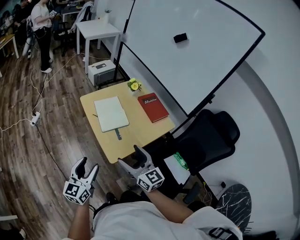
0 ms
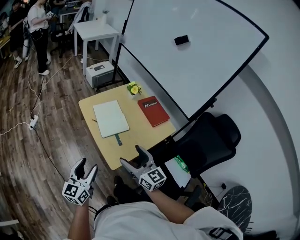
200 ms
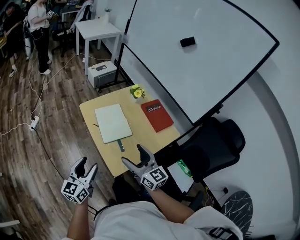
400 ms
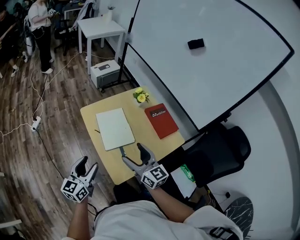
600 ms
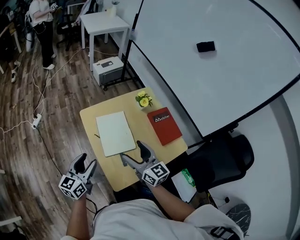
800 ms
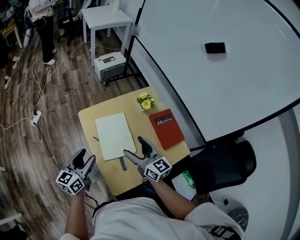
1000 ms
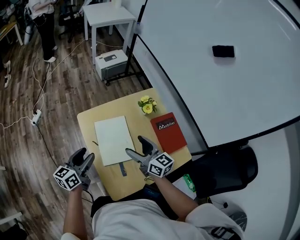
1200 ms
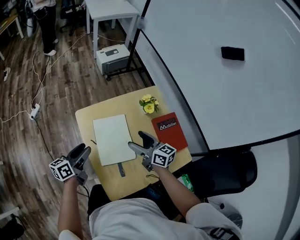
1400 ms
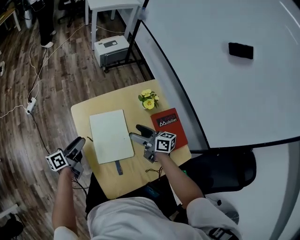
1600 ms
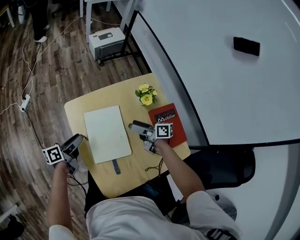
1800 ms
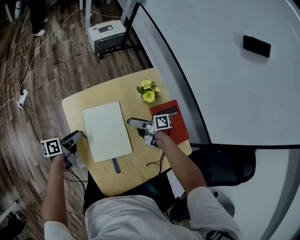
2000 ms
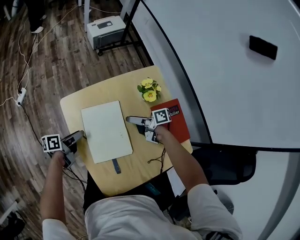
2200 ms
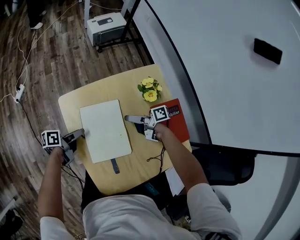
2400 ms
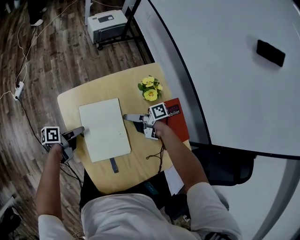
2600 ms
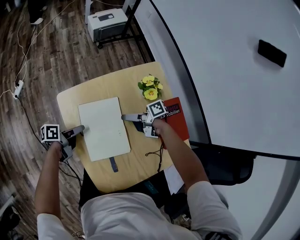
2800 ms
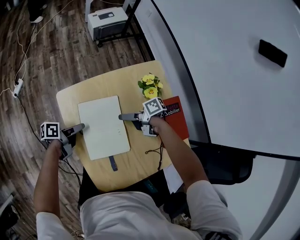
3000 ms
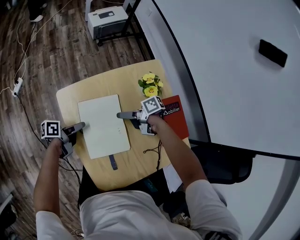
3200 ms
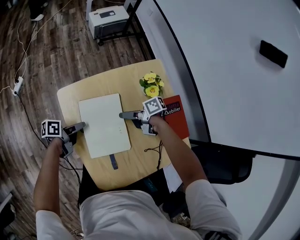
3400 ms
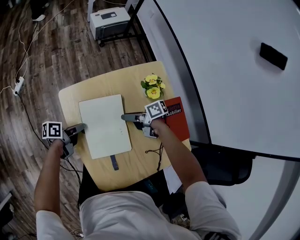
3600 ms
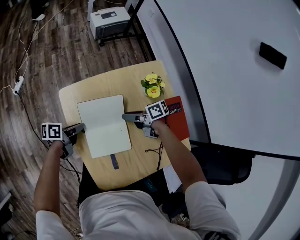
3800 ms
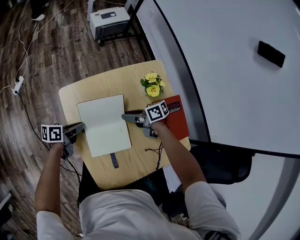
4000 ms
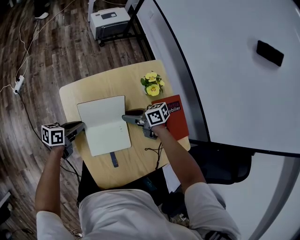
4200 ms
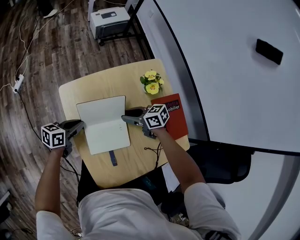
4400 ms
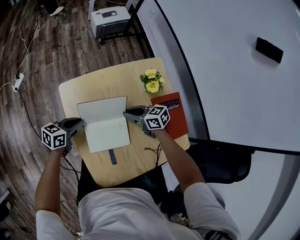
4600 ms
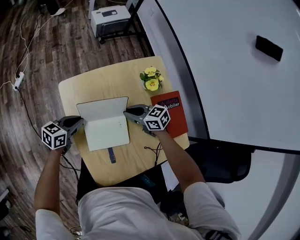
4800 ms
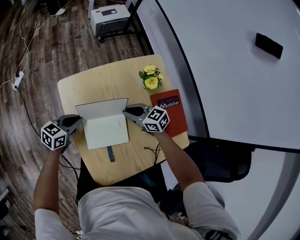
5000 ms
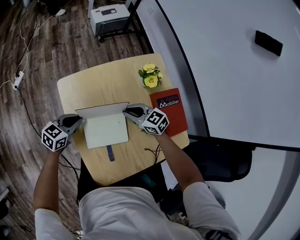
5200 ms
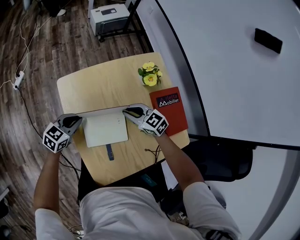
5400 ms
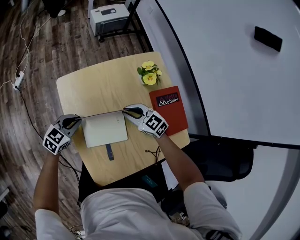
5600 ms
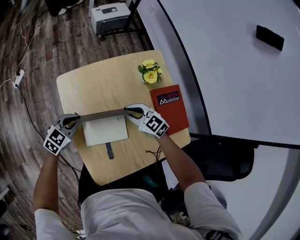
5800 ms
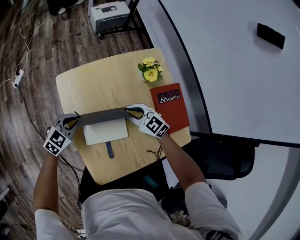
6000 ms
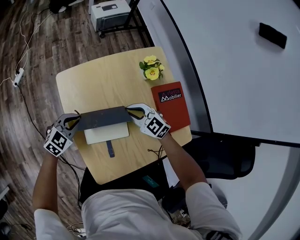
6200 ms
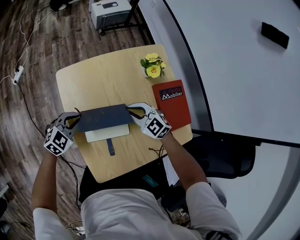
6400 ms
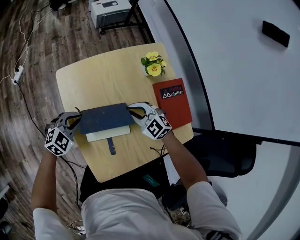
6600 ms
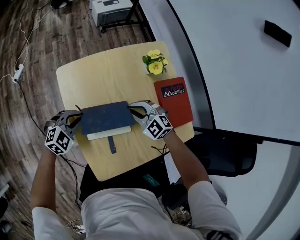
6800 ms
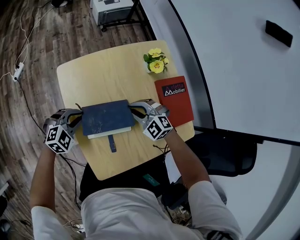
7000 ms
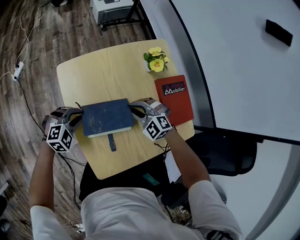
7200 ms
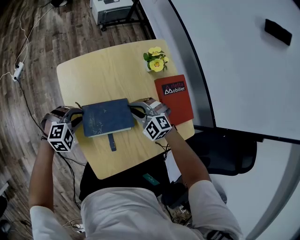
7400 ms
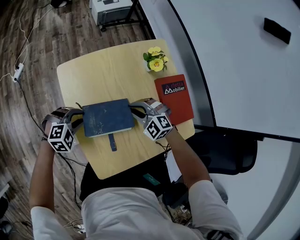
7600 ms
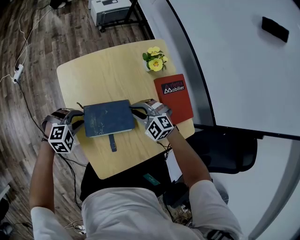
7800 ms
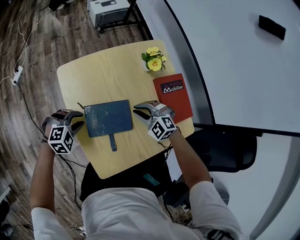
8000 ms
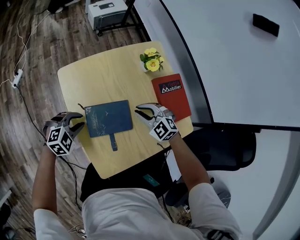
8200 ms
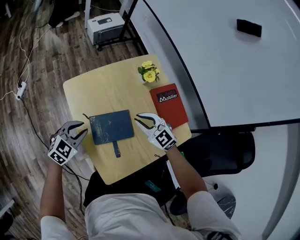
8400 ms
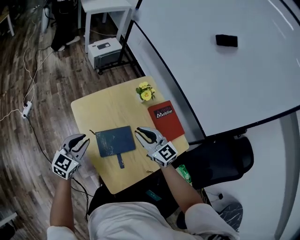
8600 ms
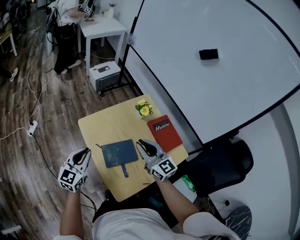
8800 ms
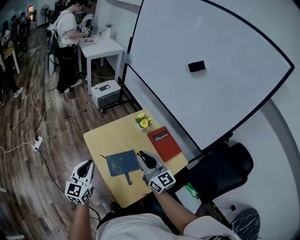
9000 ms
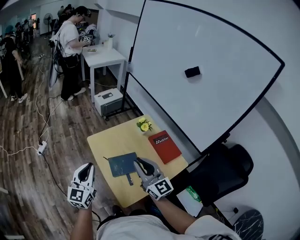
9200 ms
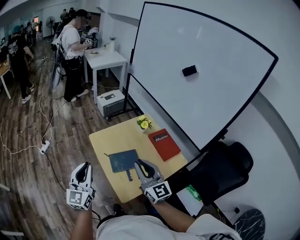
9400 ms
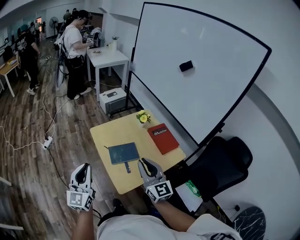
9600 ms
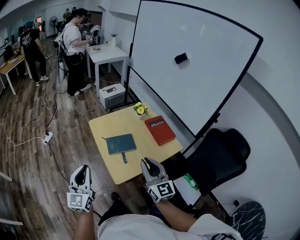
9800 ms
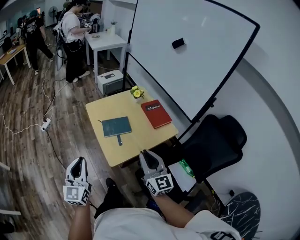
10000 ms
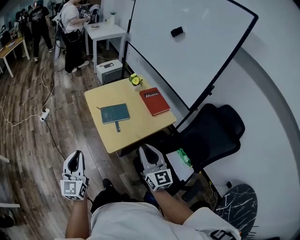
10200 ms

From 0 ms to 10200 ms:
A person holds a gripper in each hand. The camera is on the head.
From 0 ms to 1400 ms: Both grippers travel together forward, some 40 cm. The left gripper swivels about 40 degrees. Meanwhile the right gripper changes its angle by some 30 degrees.
From 1400 ms to 3000 ms: Both grippers move downward, roughly 15 cm. The left gripper swivels approximately 40 degrees, while the right gripper rotates about 60 degrees.
From 3000 ms to 4400 ms: The left gripper changes its angle by approximately 40 degrees, and closes up. The right gripper swivels approximately 40 degrees, and closes.
From 4400 ms to 5800 ms: The left gripper twists approximately 40 degrees clockwise, seen from behind; the right gripper swivels some 40 degrees.
From 5800 ms to 7200 ms: The right gripper turns by about 30 degrees, while the left gripper swivels approximately 40 degrees.
From 7200 ms to 8800 ms: The grippers both shift upward by approximately 25 cm. The right gripper tips its fingers upward by approximately 40 degrees; the left gripper tips its fingers upward by approximately 40 degrees.
From 8800 ms to 10200 ms: The grippers both shift backward by some 40 cm. The left gripper swivels some 20 degrees.

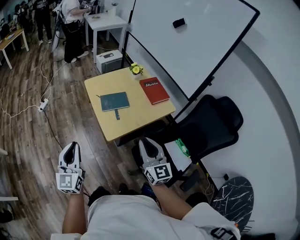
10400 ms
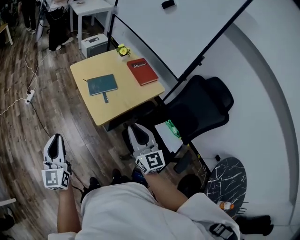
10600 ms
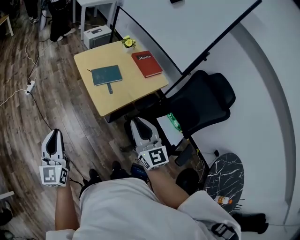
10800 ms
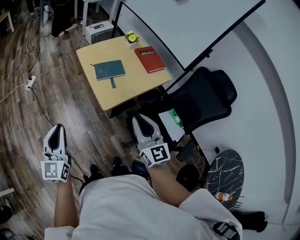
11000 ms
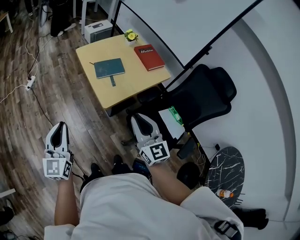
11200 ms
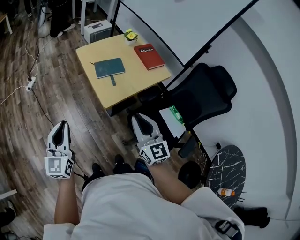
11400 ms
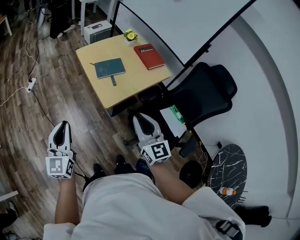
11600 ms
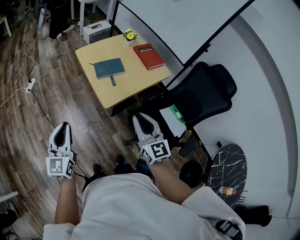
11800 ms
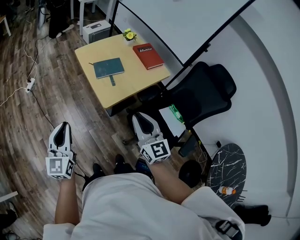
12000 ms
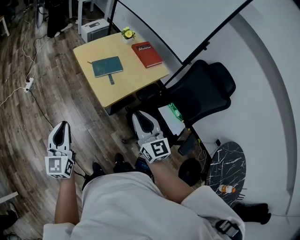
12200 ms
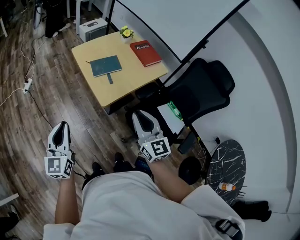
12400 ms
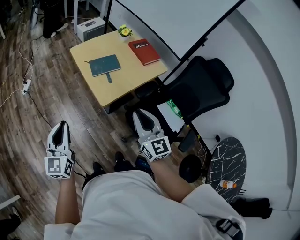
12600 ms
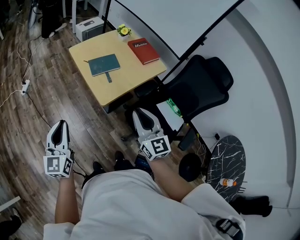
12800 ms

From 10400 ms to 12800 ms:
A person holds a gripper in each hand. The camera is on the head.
From 10400 ms to 11600 ms: The two grippers go approximately 5 cm to the left.
From 11600 ms to 12800 ms: The grippers make only small movements.

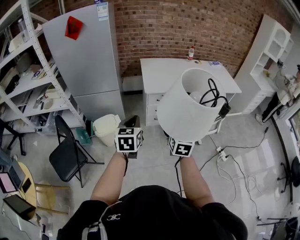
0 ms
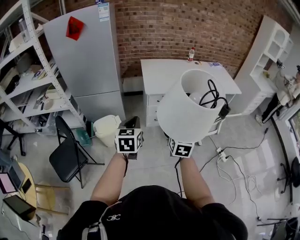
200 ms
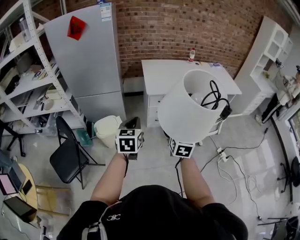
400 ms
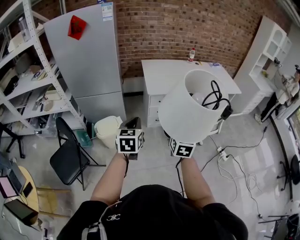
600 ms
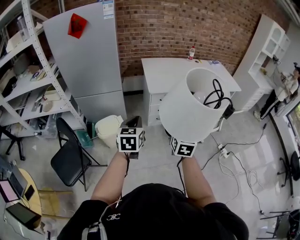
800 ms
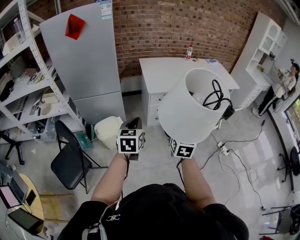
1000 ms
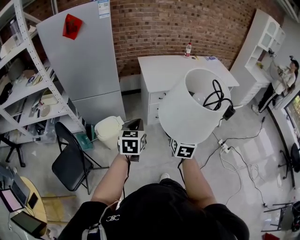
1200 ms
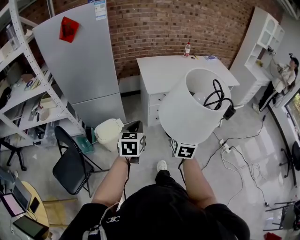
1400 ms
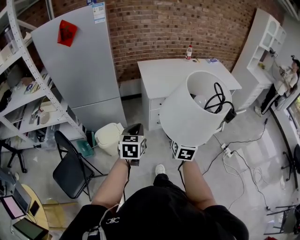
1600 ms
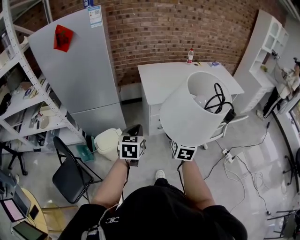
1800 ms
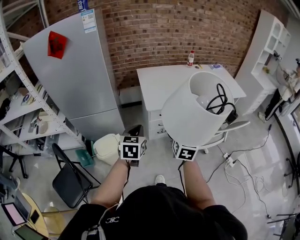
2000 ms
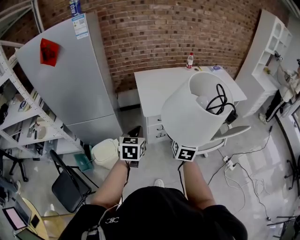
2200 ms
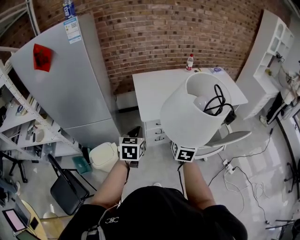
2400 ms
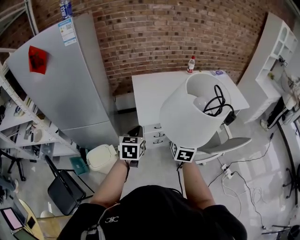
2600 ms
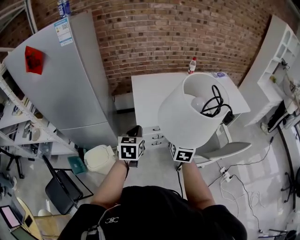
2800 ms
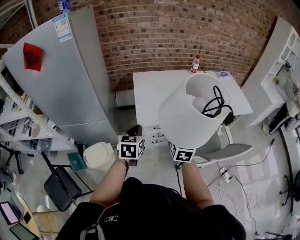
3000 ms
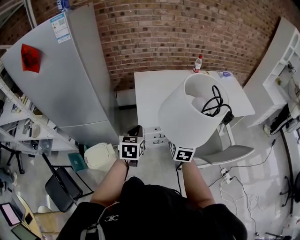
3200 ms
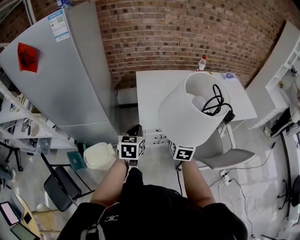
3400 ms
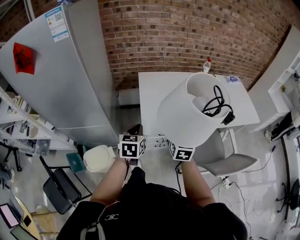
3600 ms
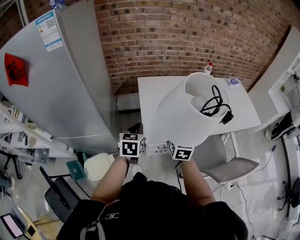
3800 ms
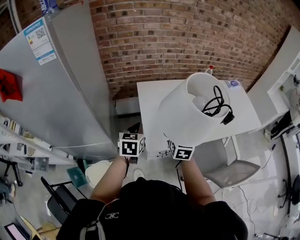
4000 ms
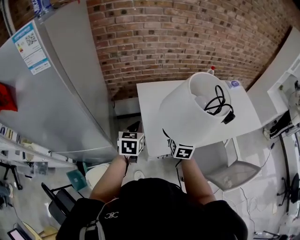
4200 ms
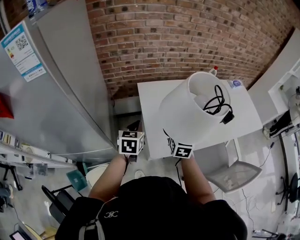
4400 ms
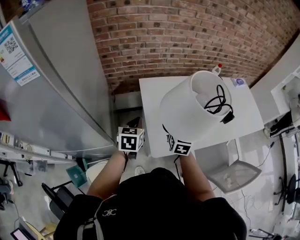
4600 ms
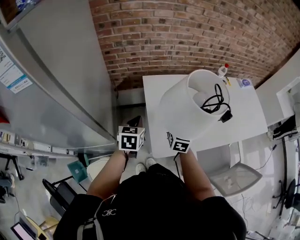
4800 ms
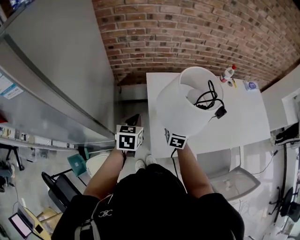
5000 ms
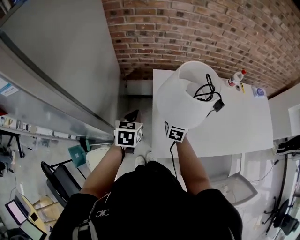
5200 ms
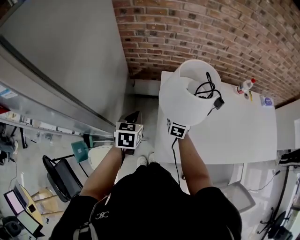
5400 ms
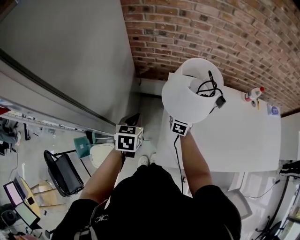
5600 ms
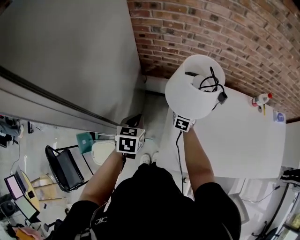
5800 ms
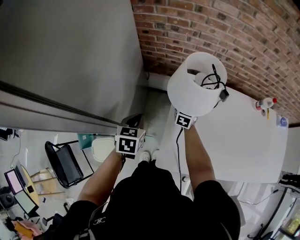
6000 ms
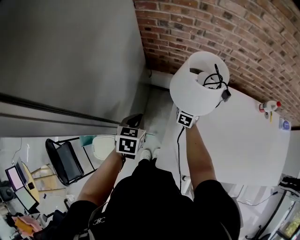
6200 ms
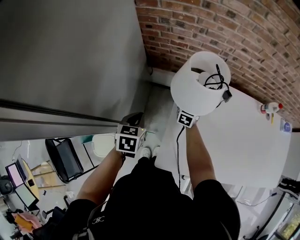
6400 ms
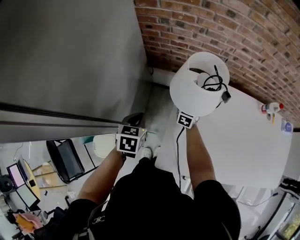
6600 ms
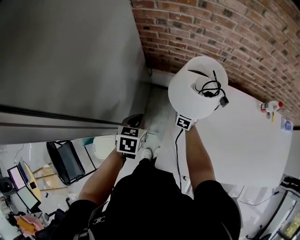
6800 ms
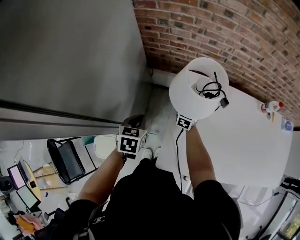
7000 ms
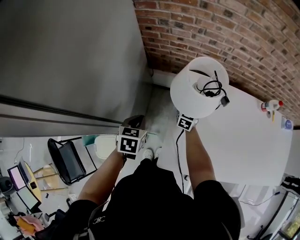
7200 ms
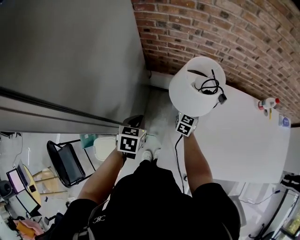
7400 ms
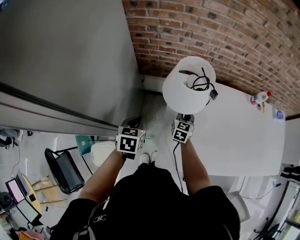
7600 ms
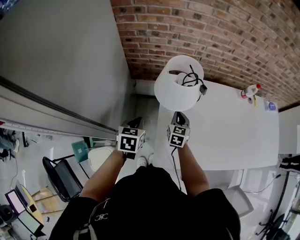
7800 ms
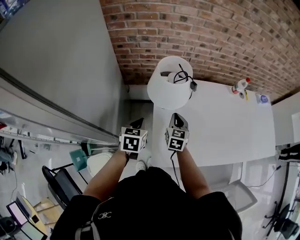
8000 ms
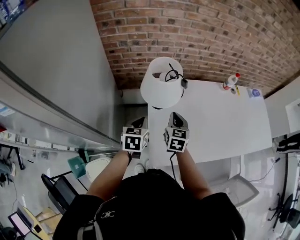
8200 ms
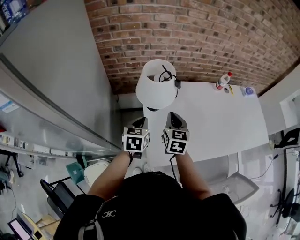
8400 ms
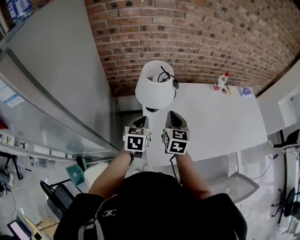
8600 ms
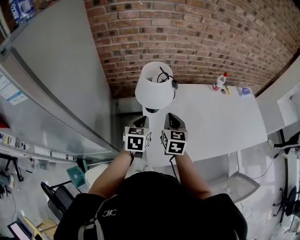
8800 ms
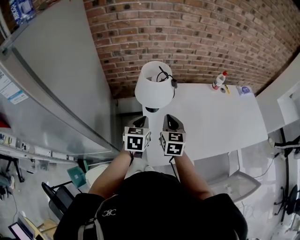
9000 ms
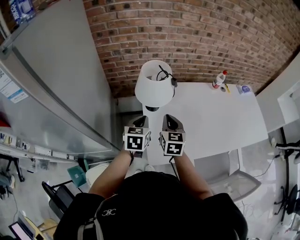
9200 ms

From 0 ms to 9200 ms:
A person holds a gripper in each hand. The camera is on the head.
From 0 ms to 1600 ms: Both grippers move to the left, roughly 5 cm.
From 1600 ms to 3000 ms: The two grippers go some 30 cm forward.
From 3000 ms to 4600 ms: The grippers both shift forward and to the left by about 35 cm.
From 4600 ms to 6200 ms: The left gripper travels to the left, downward and forward by roughly 10 cm, and turns by some 30 degrees; the right gripper goes some 30 cm forward and downward.
From 6200 ms to 7600 ms: The right gripper moves backward, approximately 10 cm, and closes up.
From 7600 ms to 9200 ms: The left gripper shifts some 15 cm to the right and upward, and changes its angle by approximately 20 degrees. The right gripper is displaced upward and backward by roughly 25 cm.

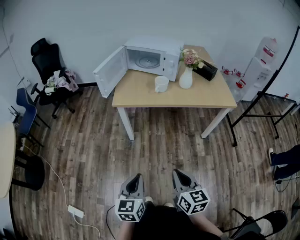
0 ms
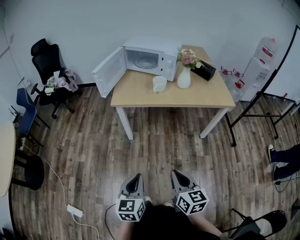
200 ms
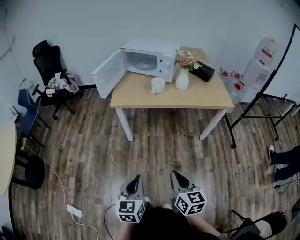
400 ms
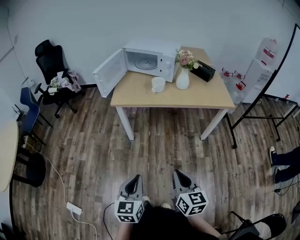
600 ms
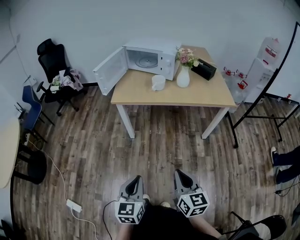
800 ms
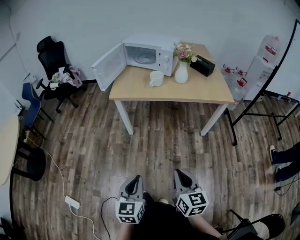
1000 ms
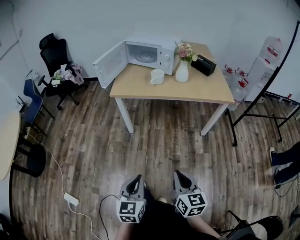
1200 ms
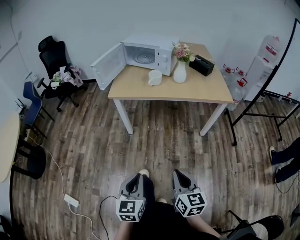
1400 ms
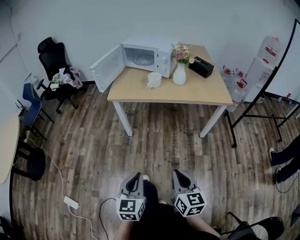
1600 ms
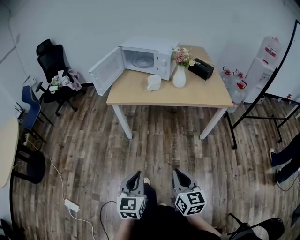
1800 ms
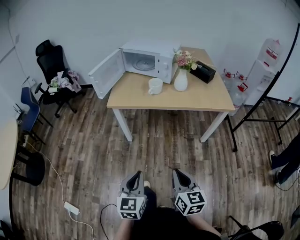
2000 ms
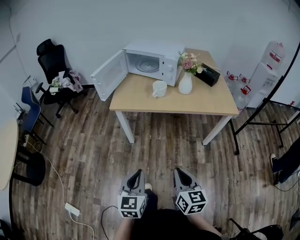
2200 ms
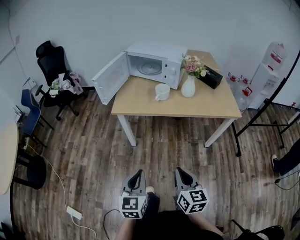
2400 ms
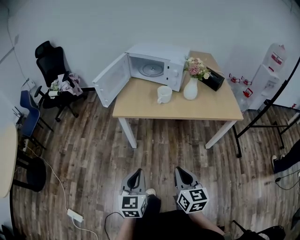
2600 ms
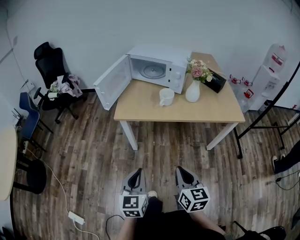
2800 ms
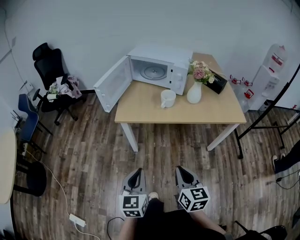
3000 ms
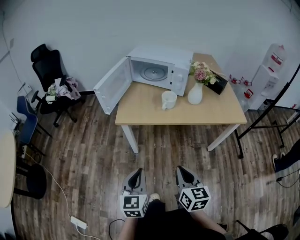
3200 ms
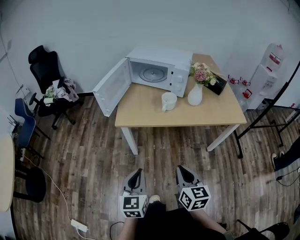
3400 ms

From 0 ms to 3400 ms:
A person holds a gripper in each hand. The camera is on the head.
From 0 ms to 1600 ms: Both grippers travel together to the right and backward, about 10 cm.
From 1600 ms to 3400 ms: Both grippers travel together forward and to the left, approximately 25 cm.
